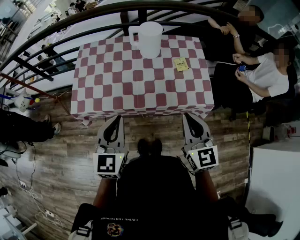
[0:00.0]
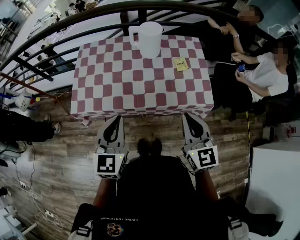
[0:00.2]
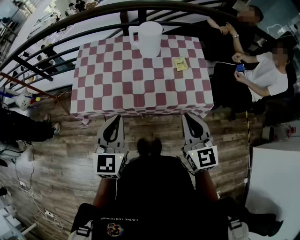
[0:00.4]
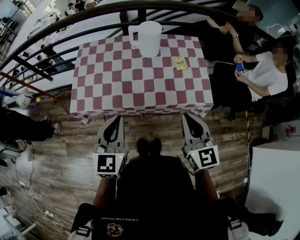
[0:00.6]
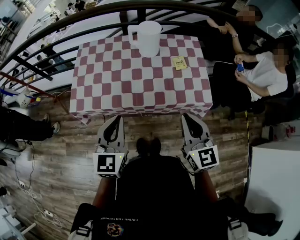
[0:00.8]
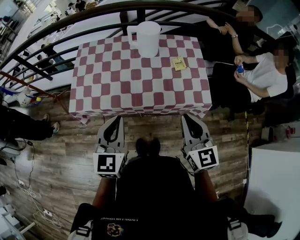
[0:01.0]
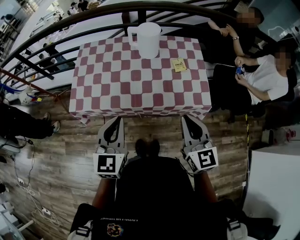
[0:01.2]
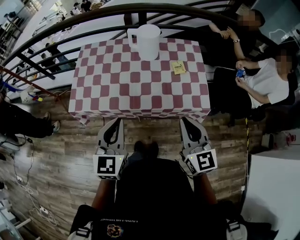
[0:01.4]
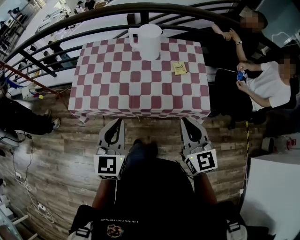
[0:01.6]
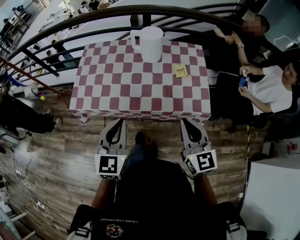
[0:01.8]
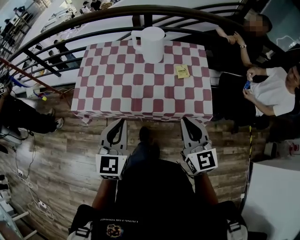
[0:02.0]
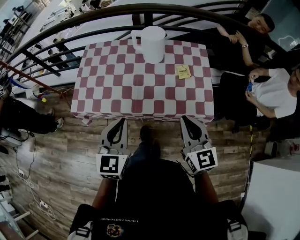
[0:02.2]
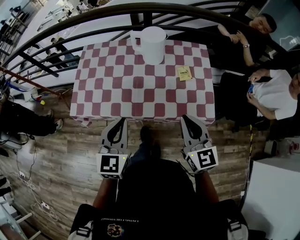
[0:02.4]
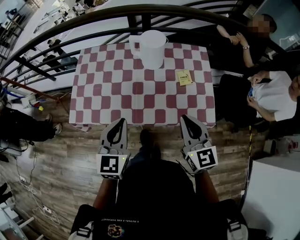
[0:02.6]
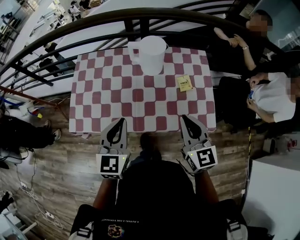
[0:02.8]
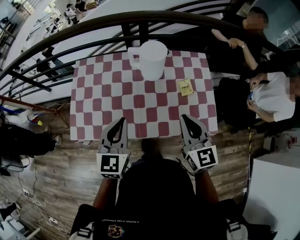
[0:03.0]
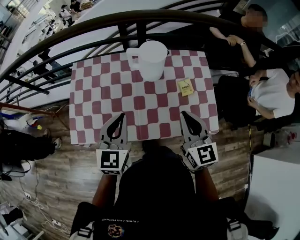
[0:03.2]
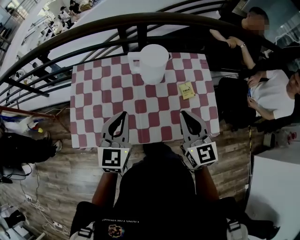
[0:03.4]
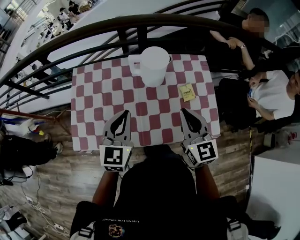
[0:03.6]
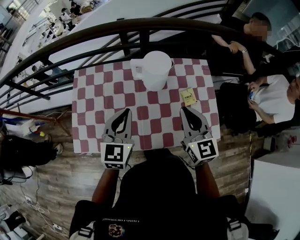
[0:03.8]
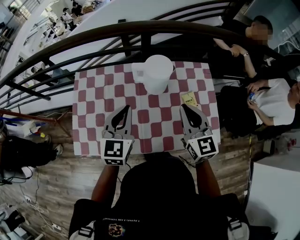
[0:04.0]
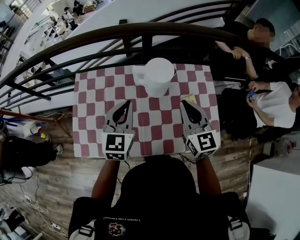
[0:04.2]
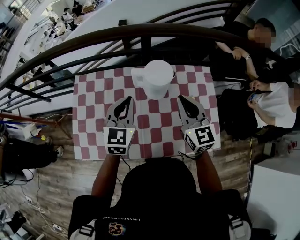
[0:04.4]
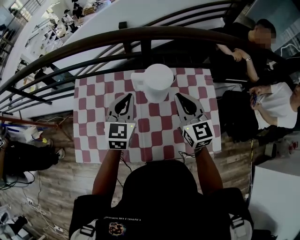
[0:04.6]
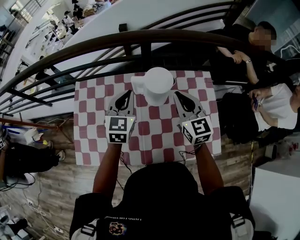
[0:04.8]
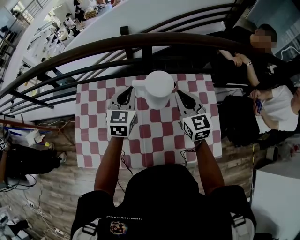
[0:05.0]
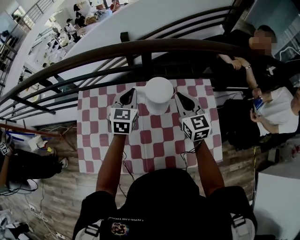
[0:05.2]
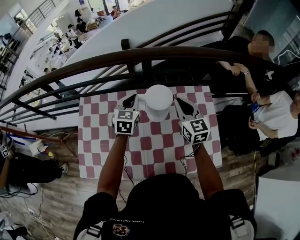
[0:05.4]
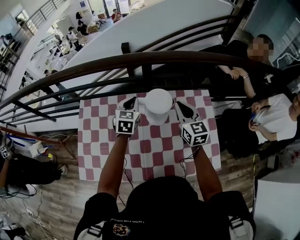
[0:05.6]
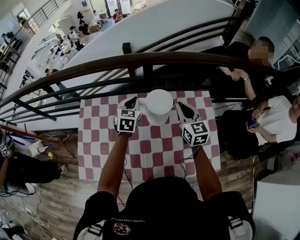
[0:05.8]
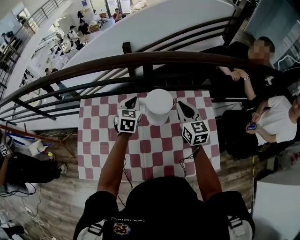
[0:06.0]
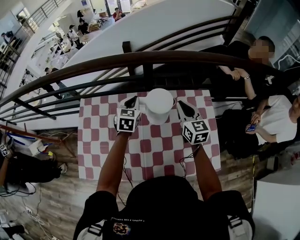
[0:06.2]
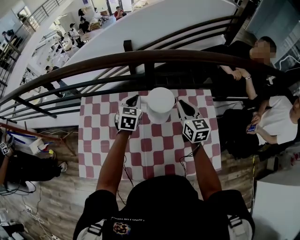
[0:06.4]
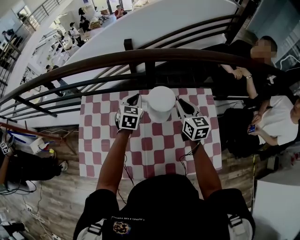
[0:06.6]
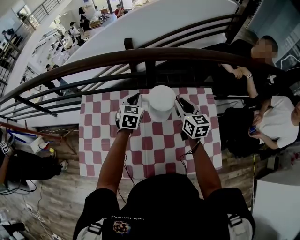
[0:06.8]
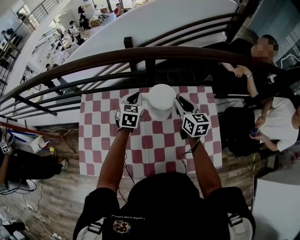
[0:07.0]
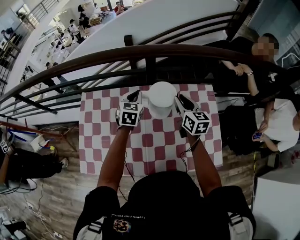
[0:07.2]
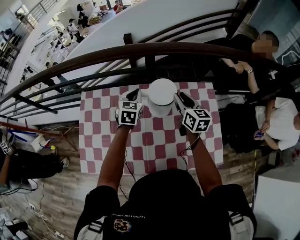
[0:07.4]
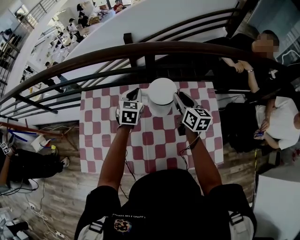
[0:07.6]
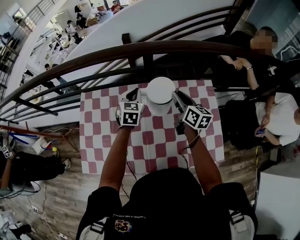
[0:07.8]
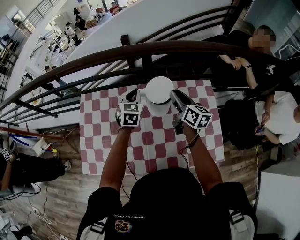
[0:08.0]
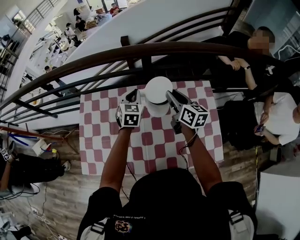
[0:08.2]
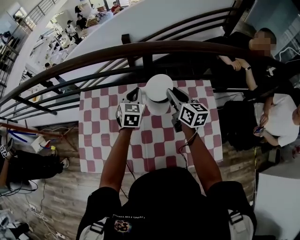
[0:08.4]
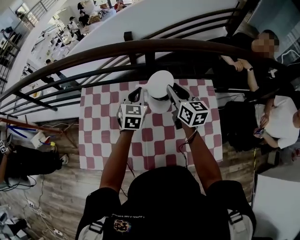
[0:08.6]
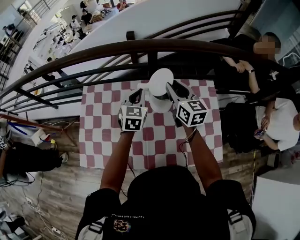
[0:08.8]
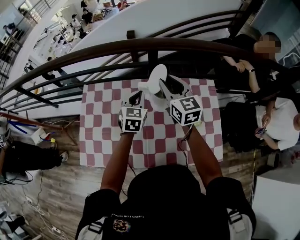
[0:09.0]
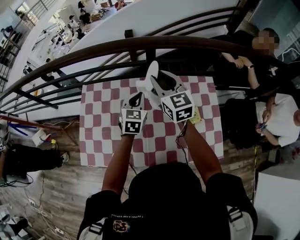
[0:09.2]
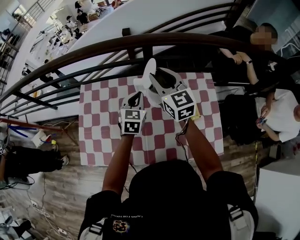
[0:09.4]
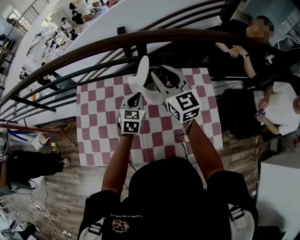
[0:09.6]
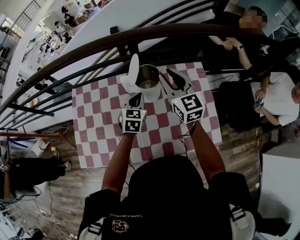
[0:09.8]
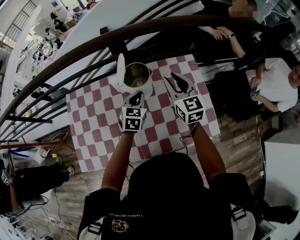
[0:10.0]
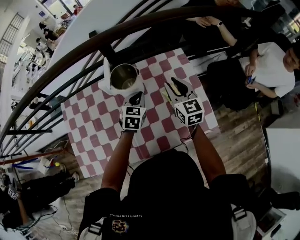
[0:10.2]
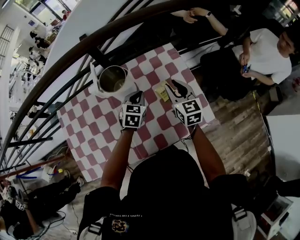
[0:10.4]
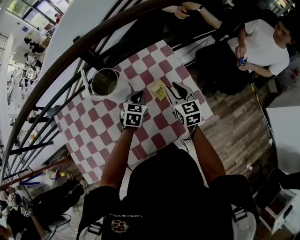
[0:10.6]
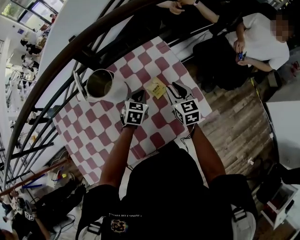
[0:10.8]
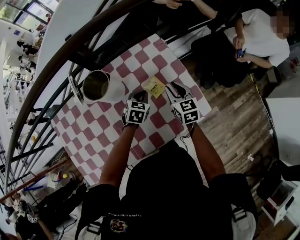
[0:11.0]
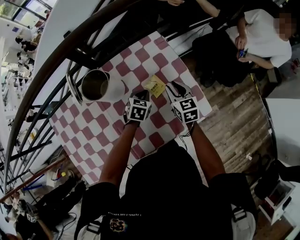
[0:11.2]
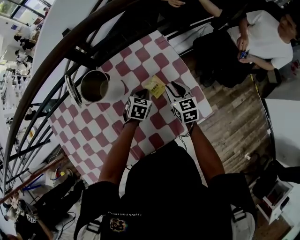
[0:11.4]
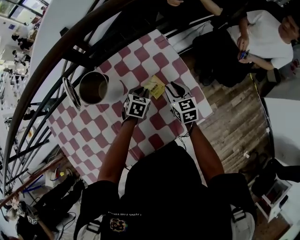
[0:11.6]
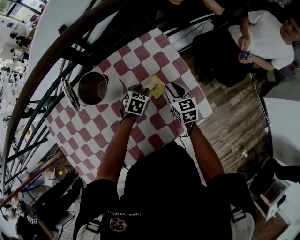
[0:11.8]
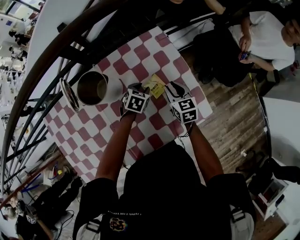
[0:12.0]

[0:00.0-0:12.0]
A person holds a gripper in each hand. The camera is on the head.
0:00.0 to 0:01.6: There are only small adjustments of the grippers.
0:01.6 to 0:03.0: Both grippers move forward, about 20 cm.
0:03.0 to 0:04.4: The two grippers go roughly 20 cm forward.
0:04.4 to 0:06.0: The right gripper heads forward, covering about 10 cm. Meanwhile the left gripper is displaced forward and downward by about 15 cm.
0:06.0 to 0:07.6: The right gripper swivels roughly 20 degrees, and opens.
0:07.6 to 0:09.0: The right gripper shifts some 10 cm upward and to the left, and changes its angle by roughly 30 degrees; the left gripper travels backward by about 5 cm.
0:09.0 to 0:10.4: The left gripper shifts by some 25 cm, and rotates about 30 degrees. Meanwhile the right gripper changes place by some 30 cm, and turns by approximately 30 degrees.
0:10.4 to 0:12.0: The right gripper shifts some 15 cm downward. The left gripper heads downward and to the right, covering some 15 cm, changes its angle by approximately 30 degrees, and opens up.

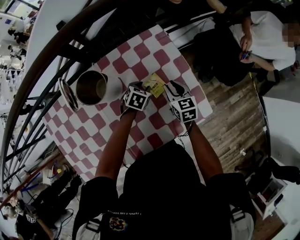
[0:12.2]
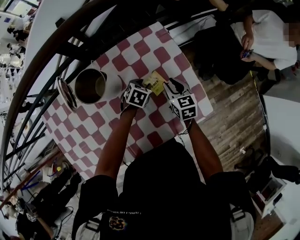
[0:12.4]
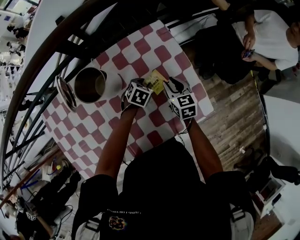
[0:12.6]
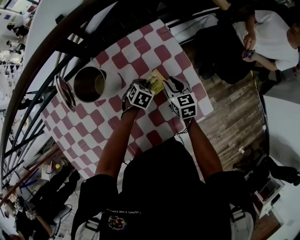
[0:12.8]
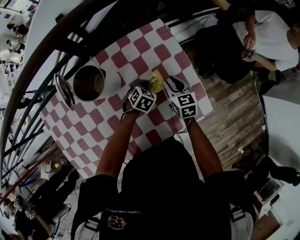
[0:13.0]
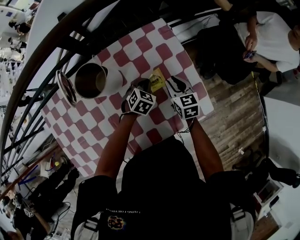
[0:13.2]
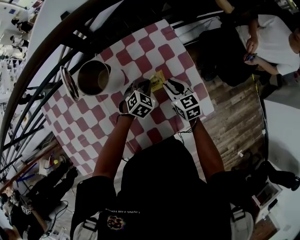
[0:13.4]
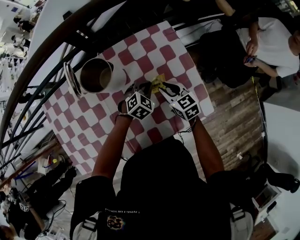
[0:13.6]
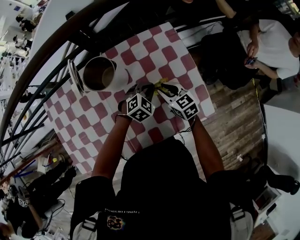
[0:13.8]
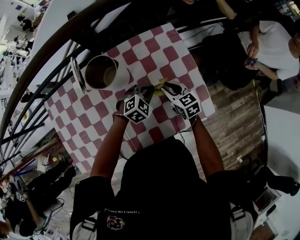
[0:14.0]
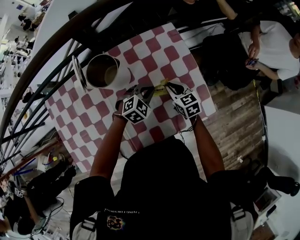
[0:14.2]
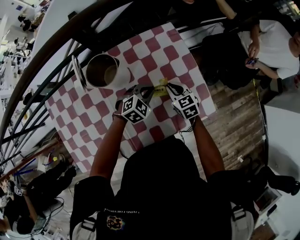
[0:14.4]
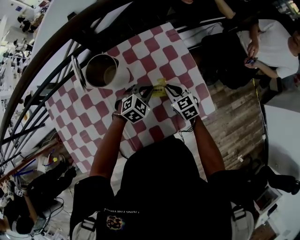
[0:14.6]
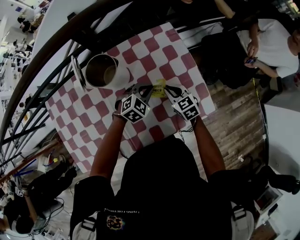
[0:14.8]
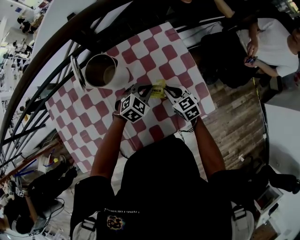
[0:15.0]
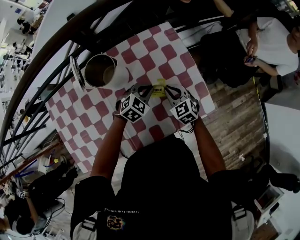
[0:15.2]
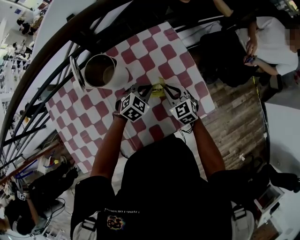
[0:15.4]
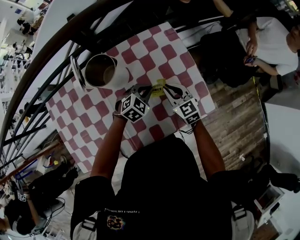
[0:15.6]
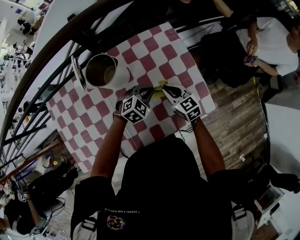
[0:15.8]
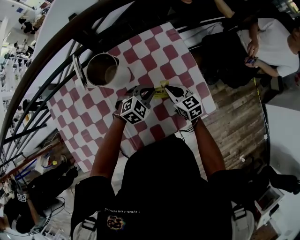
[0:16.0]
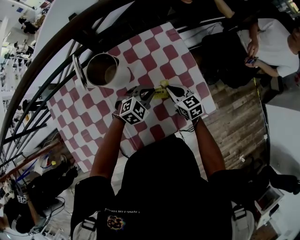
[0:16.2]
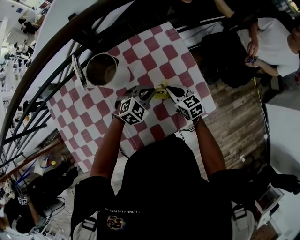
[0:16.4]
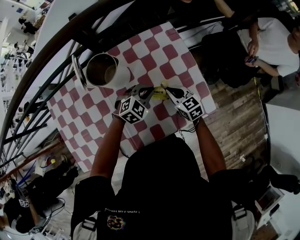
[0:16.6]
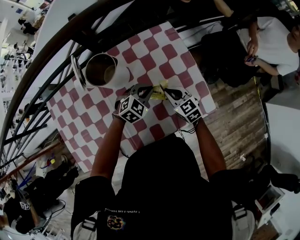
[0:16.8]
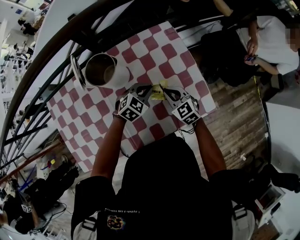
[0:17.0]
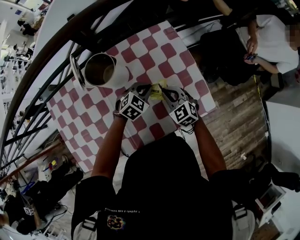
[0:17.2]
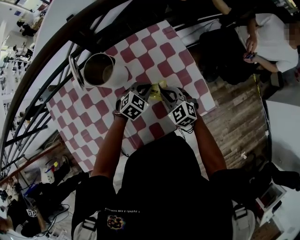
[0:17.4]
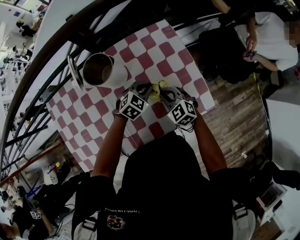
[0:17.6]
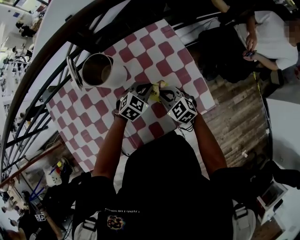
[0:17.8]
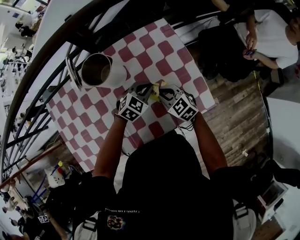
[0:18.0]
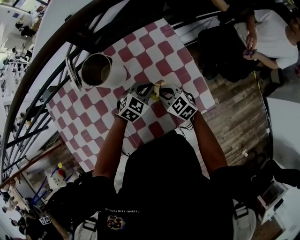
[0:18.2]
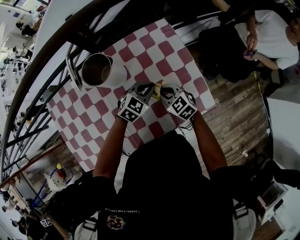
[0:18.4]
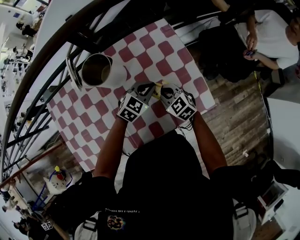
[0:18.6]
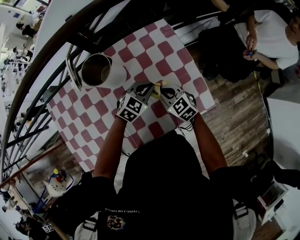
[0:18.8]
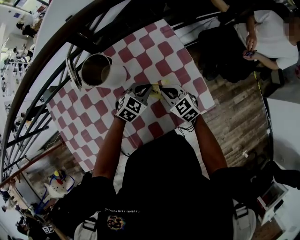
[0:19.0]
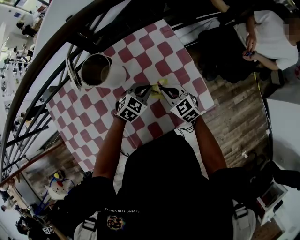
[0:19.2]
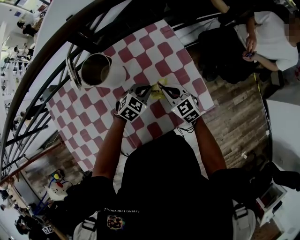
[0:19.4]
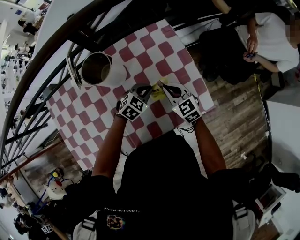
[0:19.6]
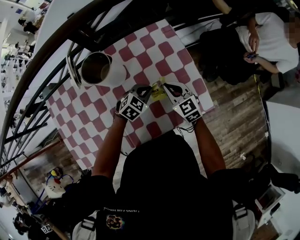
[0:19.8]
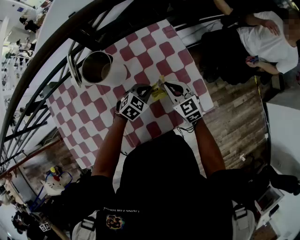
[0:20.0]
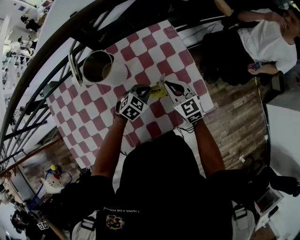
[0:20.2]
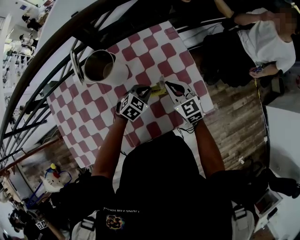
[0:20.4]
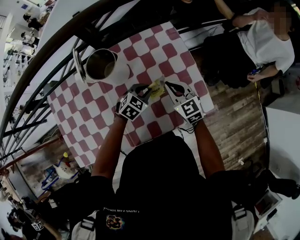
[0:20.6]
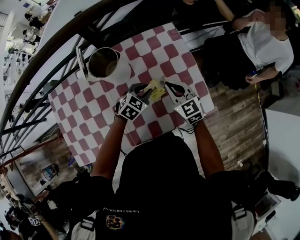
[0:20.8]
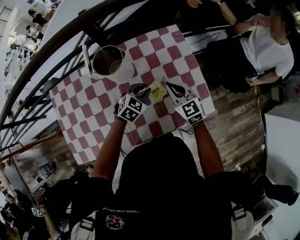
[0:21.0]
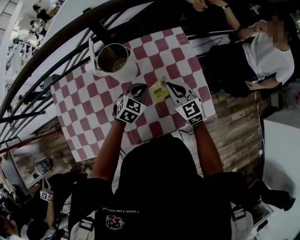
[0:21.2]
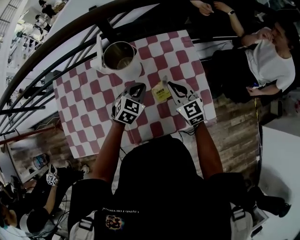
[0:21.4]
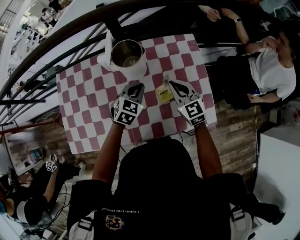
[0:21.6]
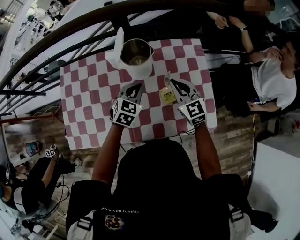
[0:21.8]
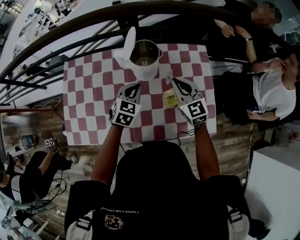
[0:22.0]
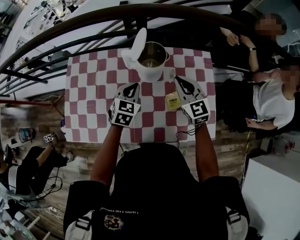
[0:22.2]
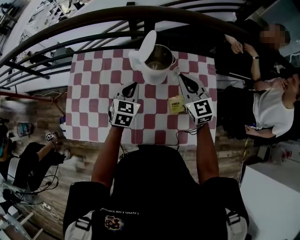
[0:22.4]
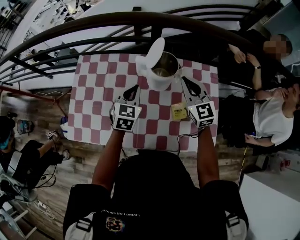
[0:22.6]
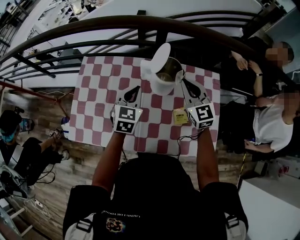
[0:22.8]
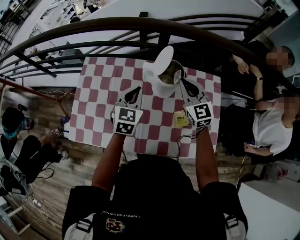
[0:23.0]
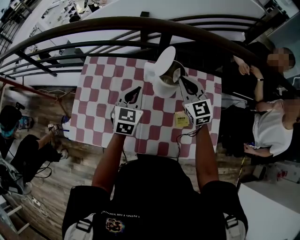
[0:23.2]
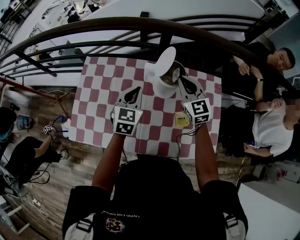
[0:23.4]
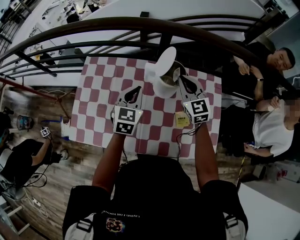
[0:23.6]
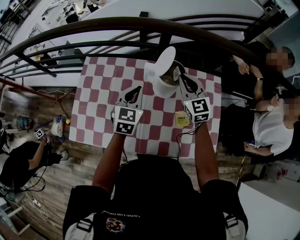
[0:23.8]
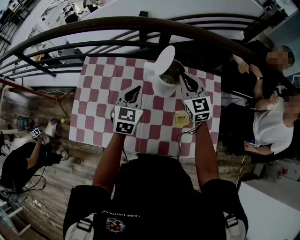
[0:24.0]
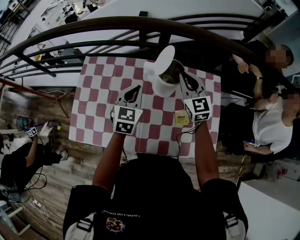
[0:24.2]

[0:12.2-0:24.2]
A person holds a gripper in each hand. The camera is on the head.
0:12.2 to 0:13.8: The left gripper is displaced upward by about 5 cm, turns by some 30 degrees, and closes its fingers. Meanwhile the right gripper travels to the left by approximately 5 cm, and rotates about 20 degrees.
0:13.8 to 0:15.2: The right gripper swivels approximately 20 degrees.
0:15.2 to 0:16.6: The right gripper changes its angle by approximately 20 degrees.
0:18.2 to 0:19.8: The right gripper moves roughly 5 cm.
0:19.8 to 0:21.2: The right gripper shifts roughly 5 cm upward, while the left gripper moves to the left and upward, roughly 10 cm.
0:21.2 to 0:22.6: The left gripper travels to the left and upward by about 20 cm, and turns by about 40 degrees, while the right gripper shifts about 20 cm upward, to the left and forward.
0:22.6 to 0:24.2: The right gripper moves forward, roughly 5 cm.
